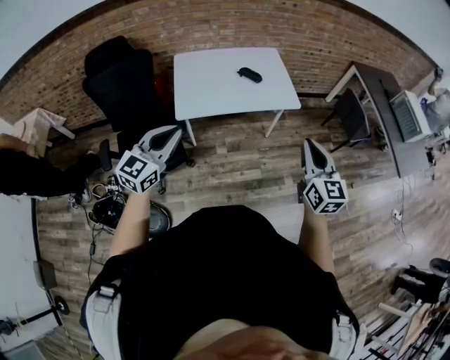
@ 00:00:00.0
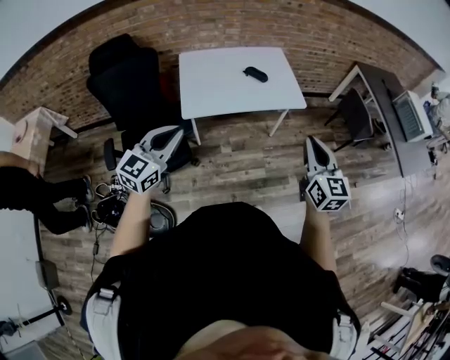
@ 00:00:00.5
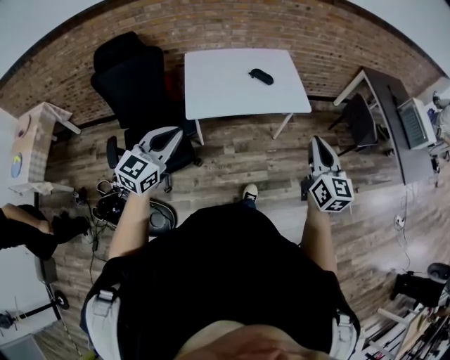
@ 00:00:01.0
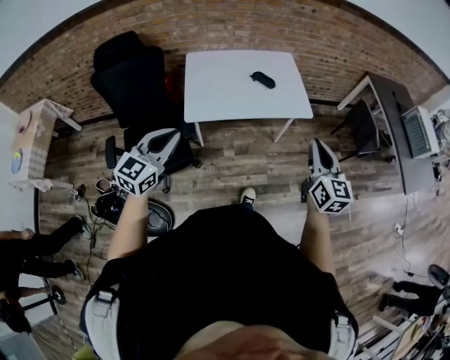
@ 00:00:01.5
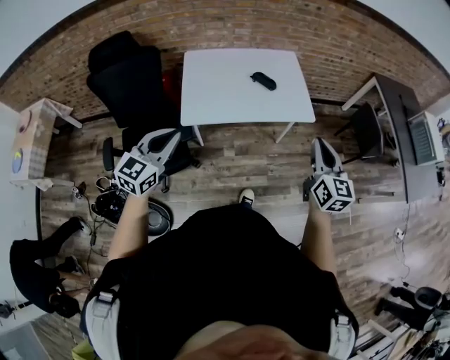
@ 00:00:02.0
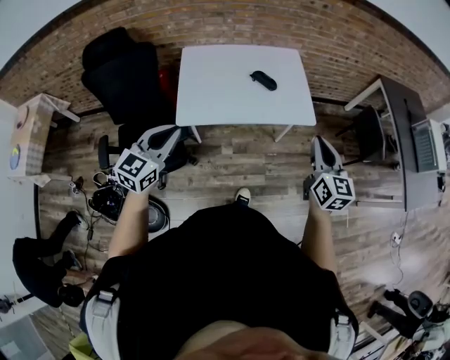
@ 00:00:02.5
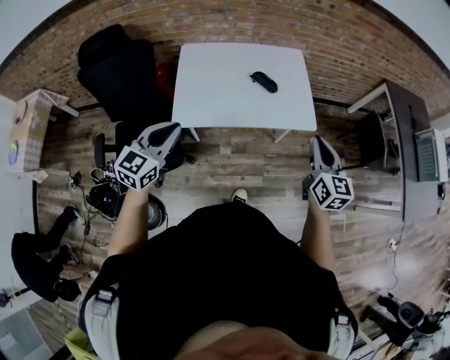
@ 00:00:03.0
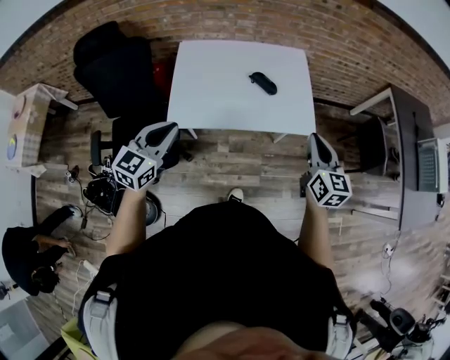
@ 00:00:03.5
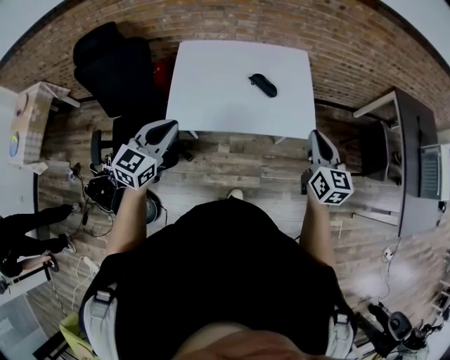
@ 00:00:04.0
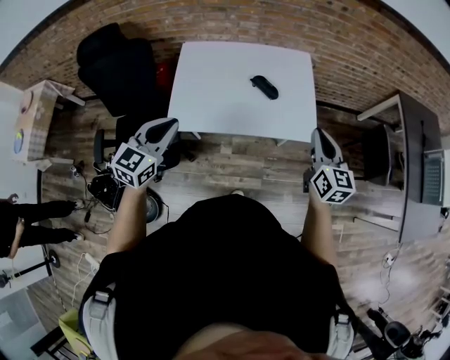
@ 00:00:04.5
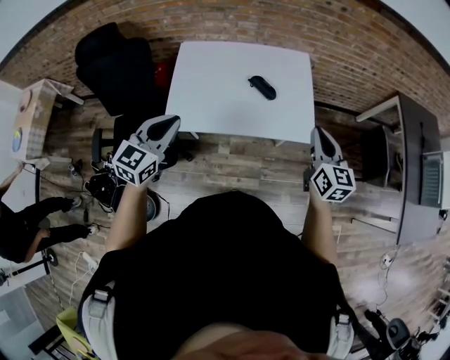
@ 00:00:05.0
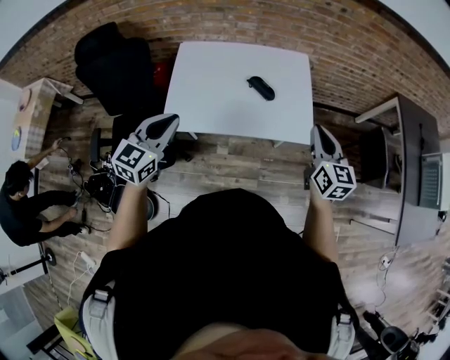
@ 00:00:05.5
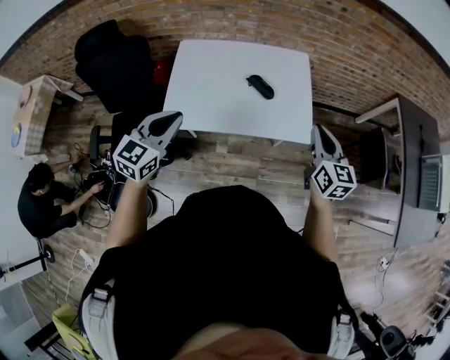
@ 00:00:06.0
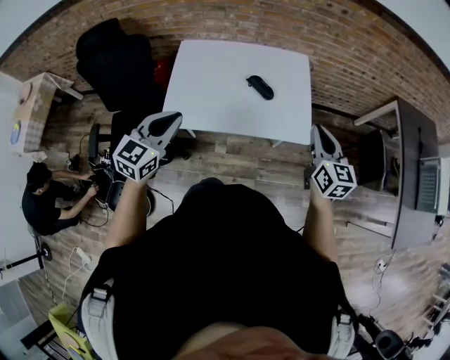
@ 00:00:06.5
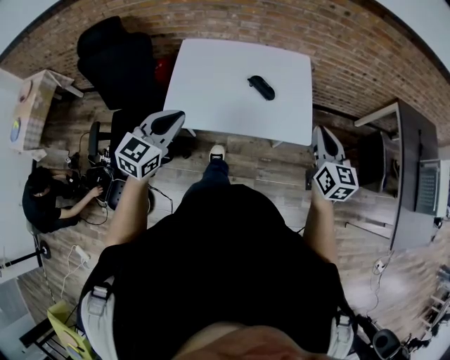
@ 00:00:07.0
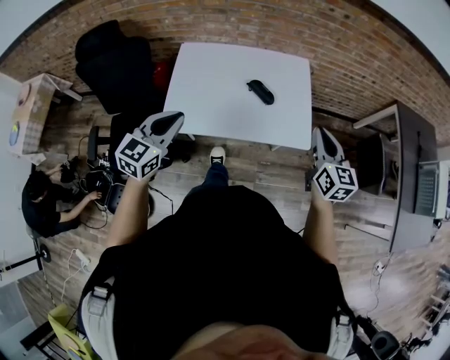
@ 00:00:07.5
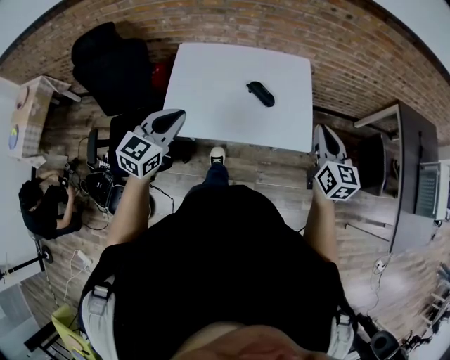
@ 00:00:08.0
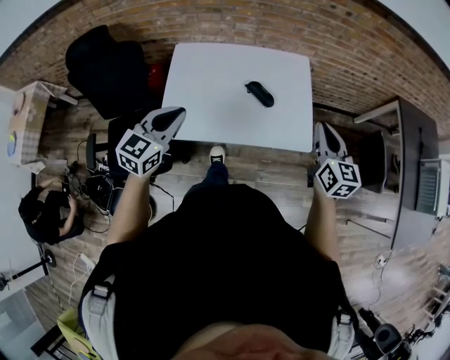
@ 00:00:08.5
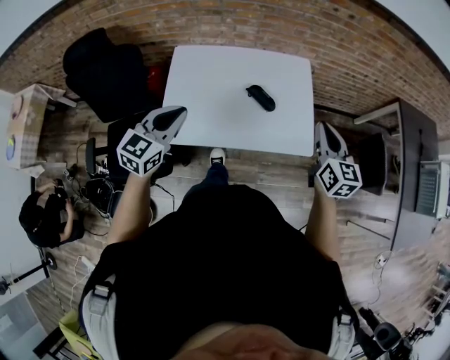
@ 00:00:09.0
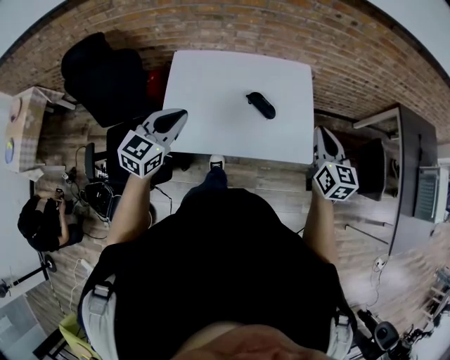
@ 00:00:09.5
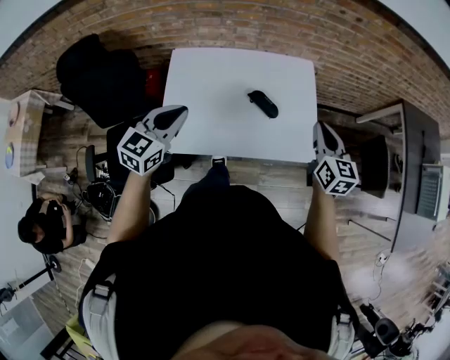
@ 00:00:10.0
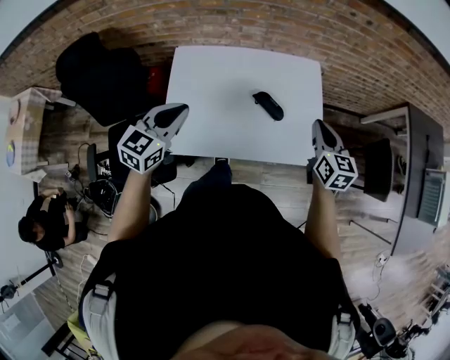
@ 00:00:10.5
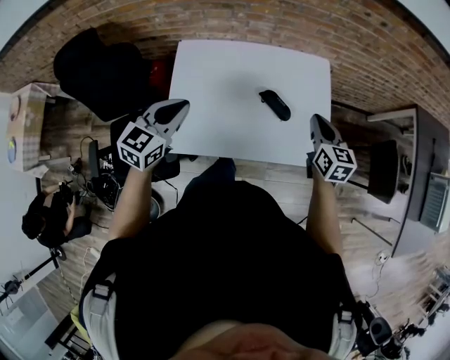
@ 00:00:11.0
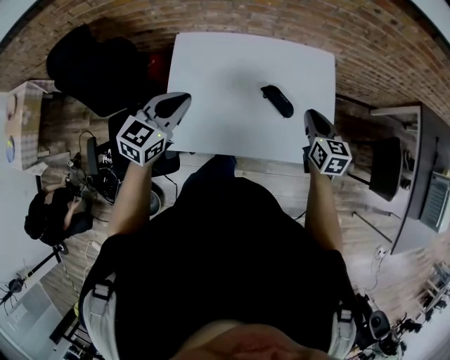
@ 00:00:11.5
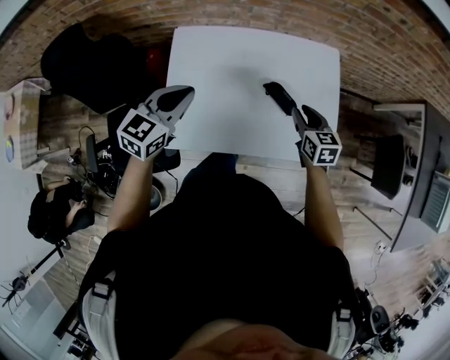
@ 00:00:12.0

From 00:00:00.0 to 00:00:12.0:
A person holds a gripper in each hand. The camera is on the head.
From 00:00:00.0 to 00:00:02.0: The left gripper moves forward, some 10 cm; the right gripper heads forward, covering approximately 15 cm.
From 00:00:02.0 to 00:00:04.0: The two grippers go approximately 20 cm forward.
From 00:00:04.0 to 00:00:06.0: The left gripper changes place by roughly 5 cm. The right gripper moves roughly 5 cm.
From 00:00:06.0 to 00:00:08.0: The left gripper travels forward by about 5 cm. Meanwhile the right gripper moves approximately 5 cm.
From 00:00:08.0 to 00:00:10.0: Both grippers move forward, some 10 cm.
From 00:00:10.0 to 00:00:12.0: The right gripper is displaced downward, to the left and forward by approximately 25 cm, and turns by some 20 degrees. The left gripper is displaced forward and downward by some 10 cm.

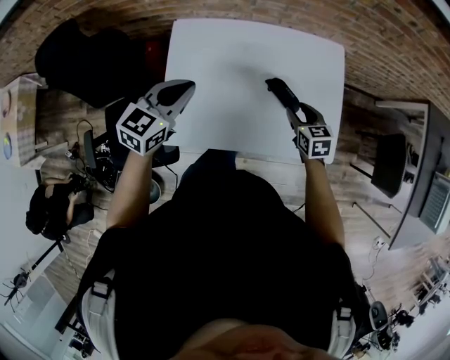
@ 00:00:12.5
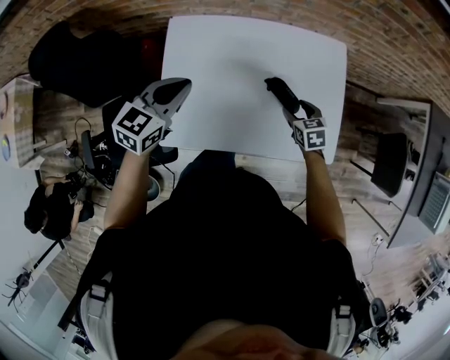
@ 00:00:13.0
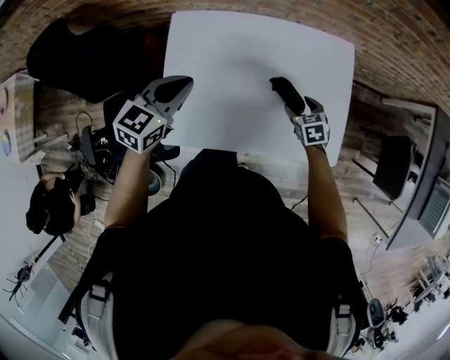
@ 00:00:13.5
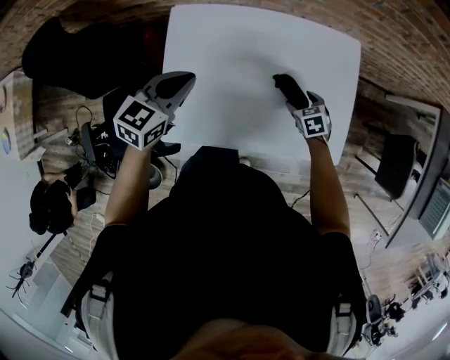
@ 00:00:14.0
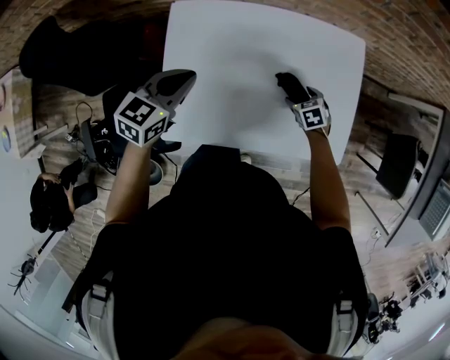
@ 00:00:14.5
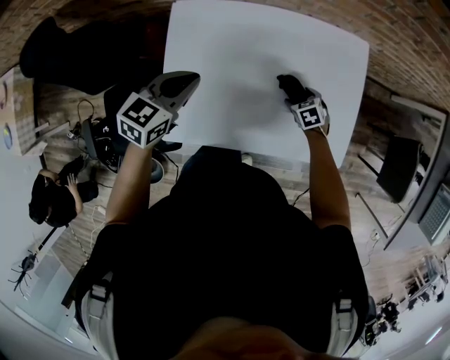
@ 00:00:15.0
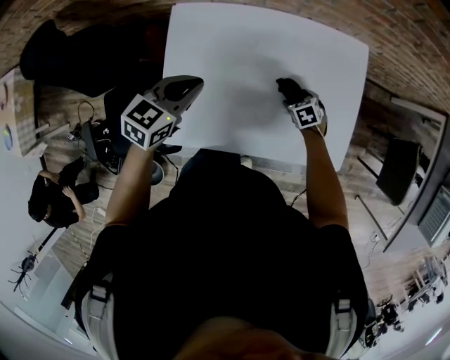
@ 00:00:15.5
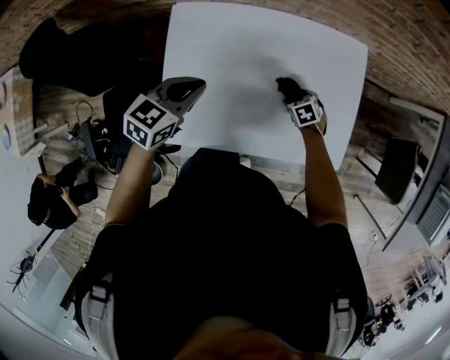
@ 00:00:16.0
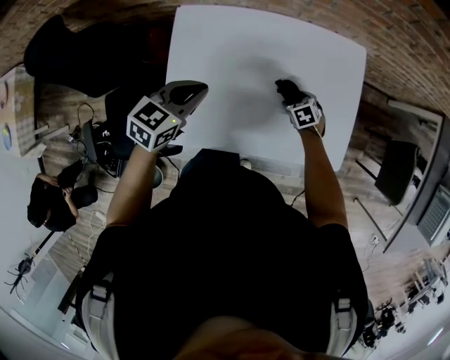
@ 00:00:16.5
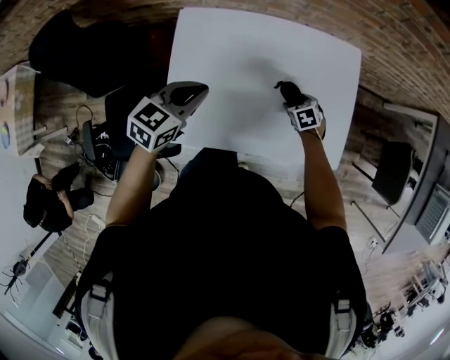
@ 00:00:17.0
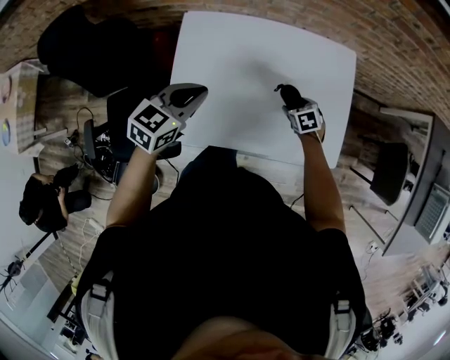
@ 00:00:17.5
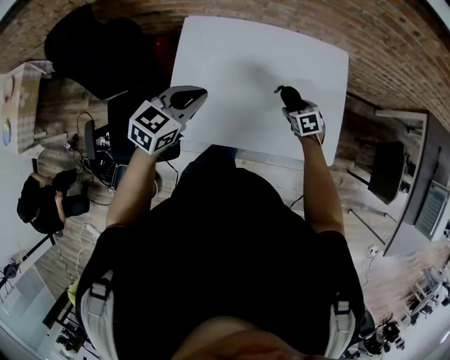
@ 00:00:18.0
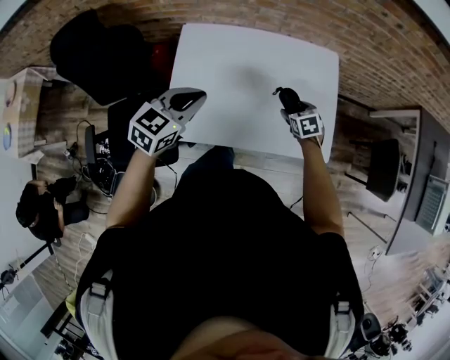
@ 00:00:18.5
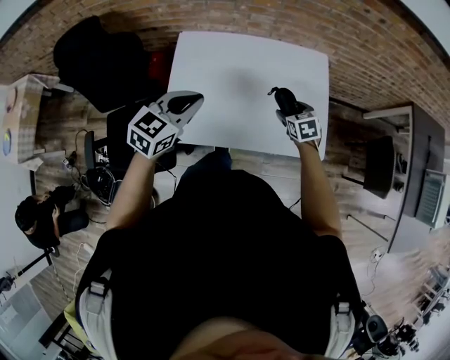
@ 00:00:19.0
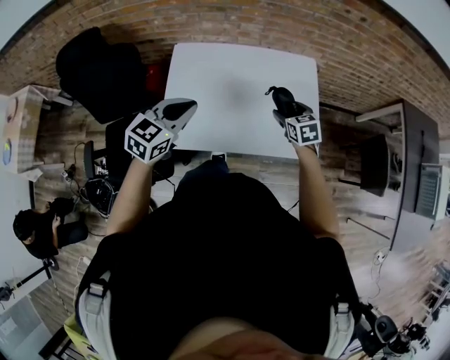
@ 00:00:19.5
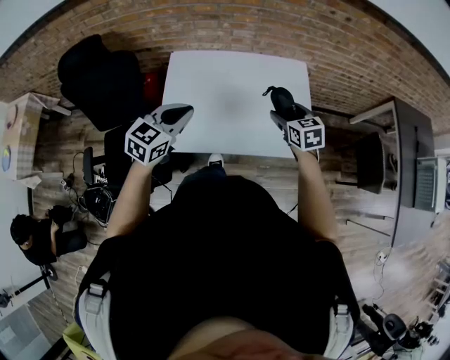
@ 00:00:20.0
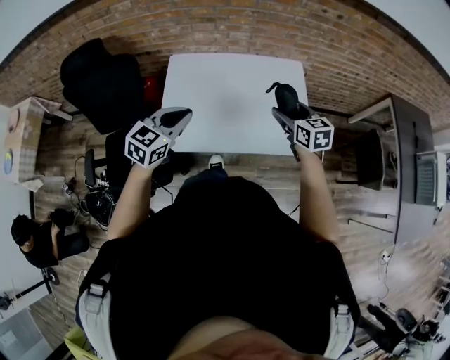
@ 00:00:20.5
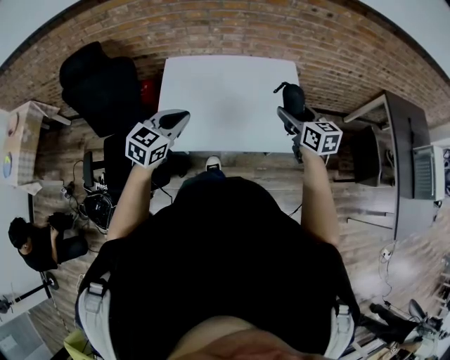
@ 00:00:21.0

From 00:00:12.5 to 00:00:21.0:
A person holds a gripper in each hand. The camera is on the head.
From 00:00:12.5 to 00:00:14.5: The right gripper moves downward, some 15 cm, swivels approximately 30 degrees, and opens its fingers; the left gripper travels downward and forward by roughly 10 cm.
From 00:00:14.5 to 00:00:16.5: The grippers stay close to where they were, moving slightly.
From 00:00:16.5 to 00:00:19.0: The right gripper moves upward, about 20 cm, and changes its angle by about 20 degrees. The left gripper shifts roughly 20 cm backward and upward.
From 00:00:19.0 to 00:00:21.0: The right gripper heads upward and backward, covering approximately 25 cm, and tips its fingers upward by some 30 degrees; the left gripper goes approximately 10 cm backward.

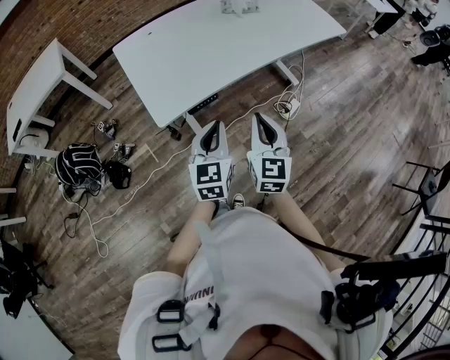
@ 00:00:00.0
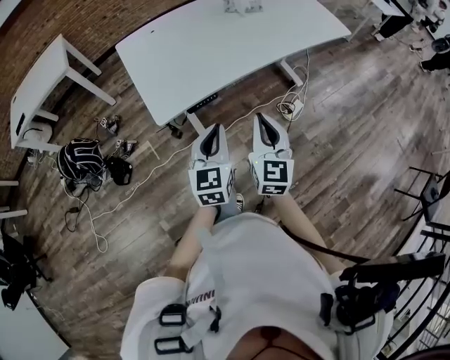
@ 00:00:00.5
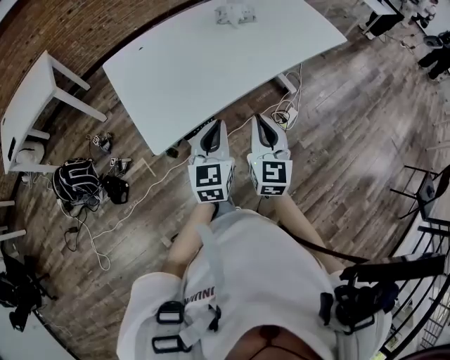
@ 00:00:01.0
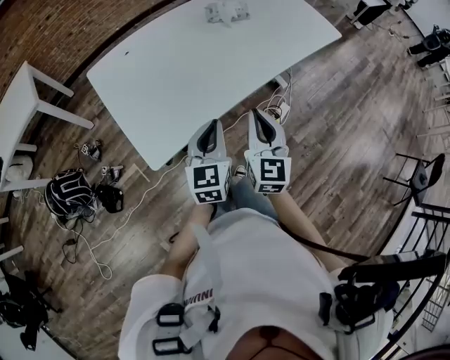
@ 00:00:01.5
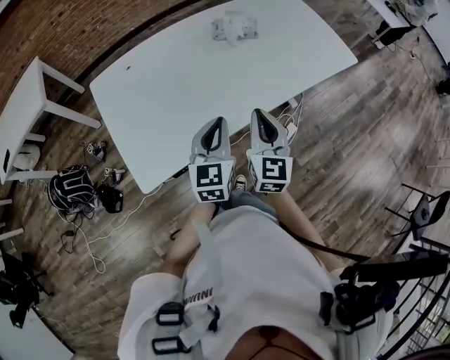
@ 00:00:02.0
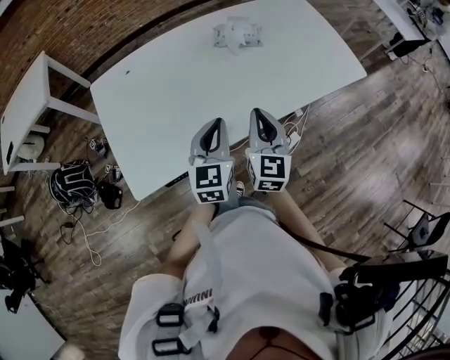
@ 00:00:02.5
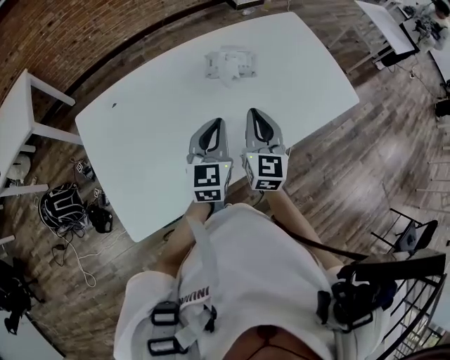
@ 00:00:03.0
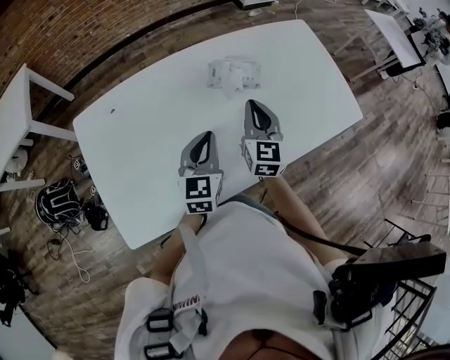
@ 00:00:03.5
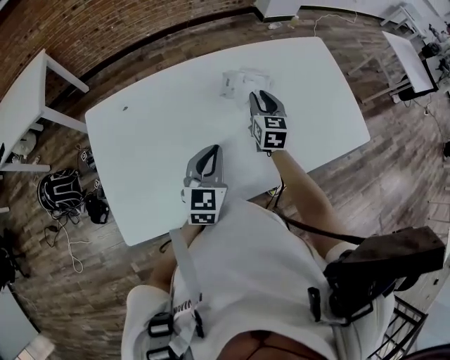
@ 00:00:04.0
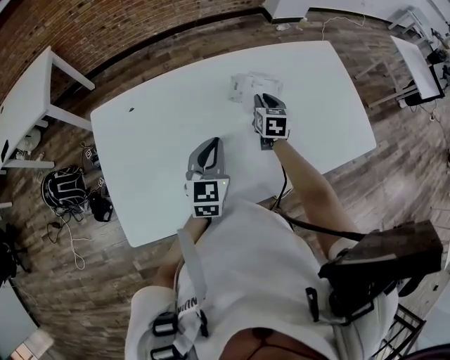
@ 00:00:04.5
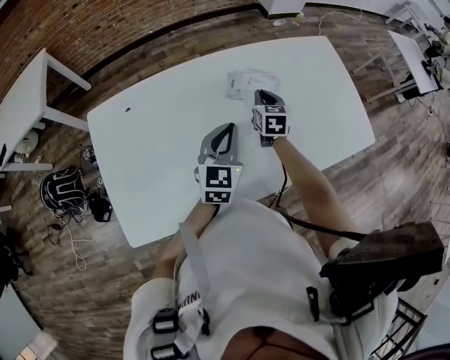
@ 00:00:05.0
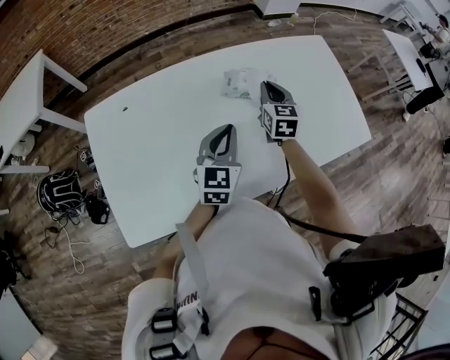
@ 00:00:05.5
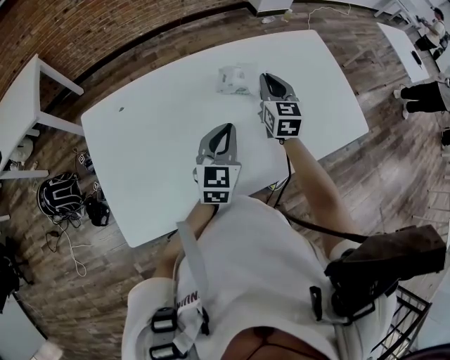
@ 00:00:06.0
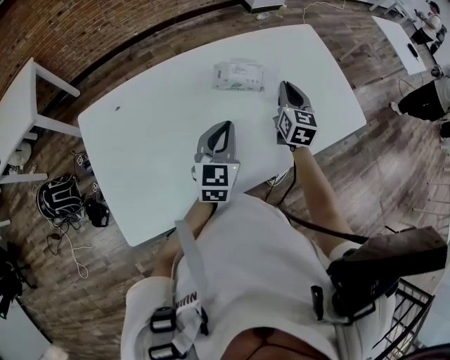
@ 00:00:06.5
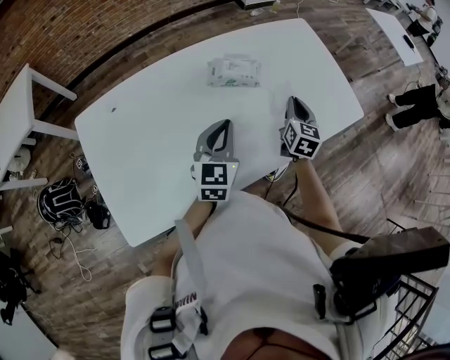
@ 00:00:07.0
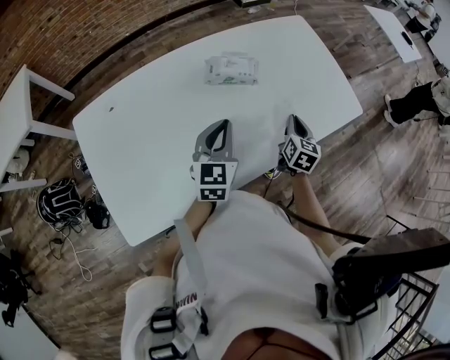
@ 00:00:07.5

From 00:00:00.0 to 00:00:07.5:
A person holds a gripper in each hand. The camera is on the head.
From 00:00:00.0 to 00:00:02.0: The two grippers go approximately 25 cm forward.
From 00:00:02.0 to 00:00:04.0: The left gripper is displaced forward by about 20 cm, while the right gripper moves forward, approximately 35 cm, and opens.
From 00:00:04.0 to 00:00:05.5: The right gripper closes. The left gripper shifts about 5 cm forward.
From 00:00:05.5 to 00:00:07.5: The right gripper shifts about 20 cm to the right and backward, and rotates some 30 degrees.
